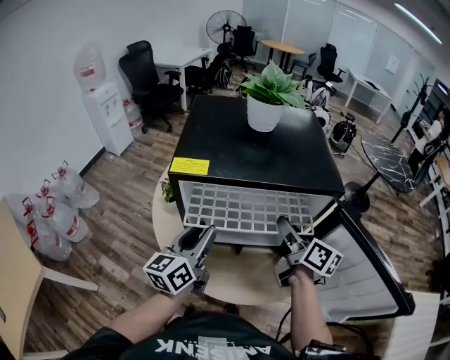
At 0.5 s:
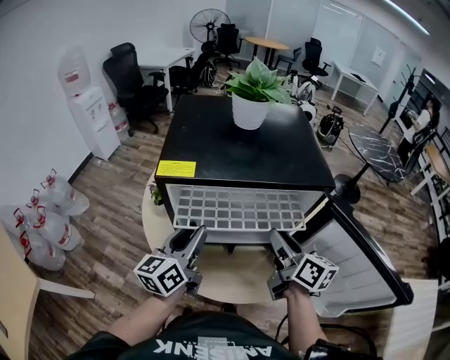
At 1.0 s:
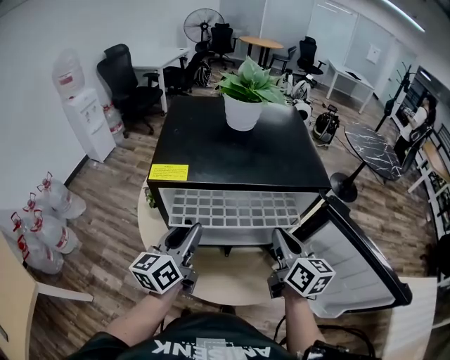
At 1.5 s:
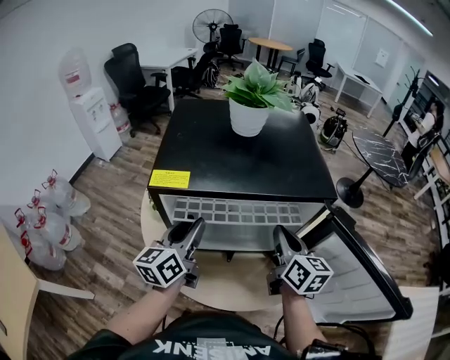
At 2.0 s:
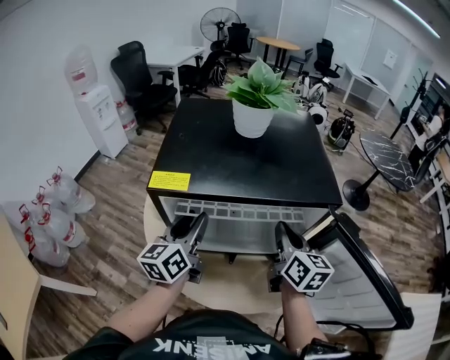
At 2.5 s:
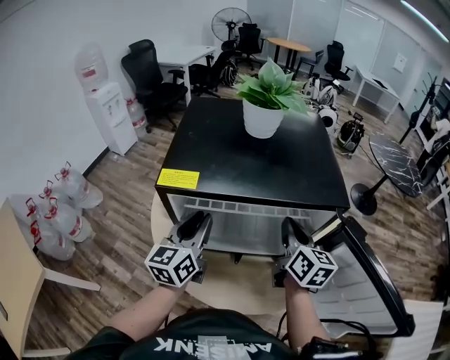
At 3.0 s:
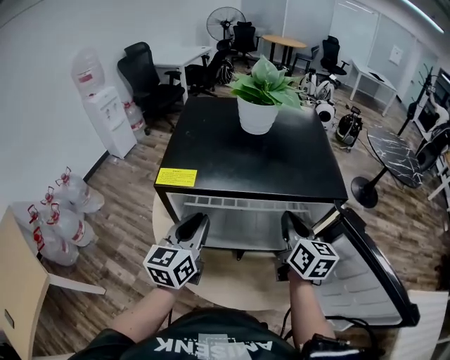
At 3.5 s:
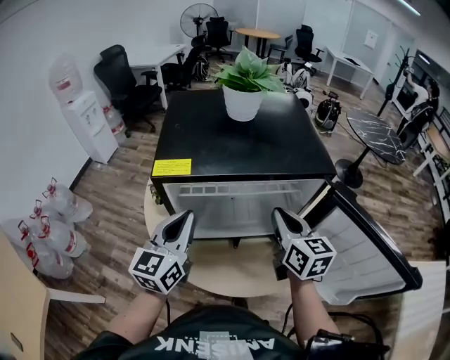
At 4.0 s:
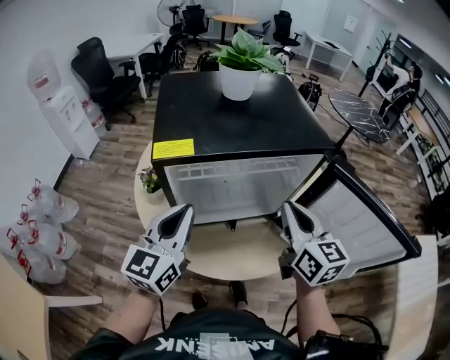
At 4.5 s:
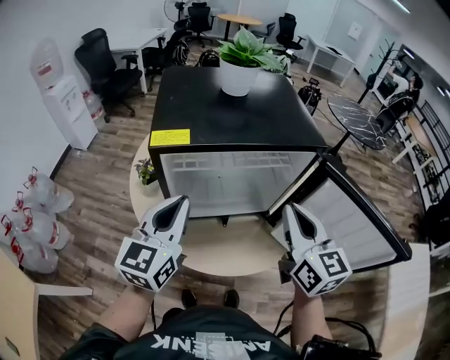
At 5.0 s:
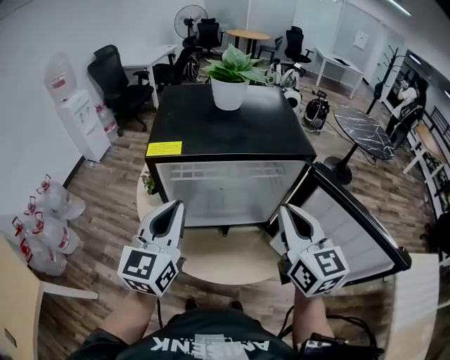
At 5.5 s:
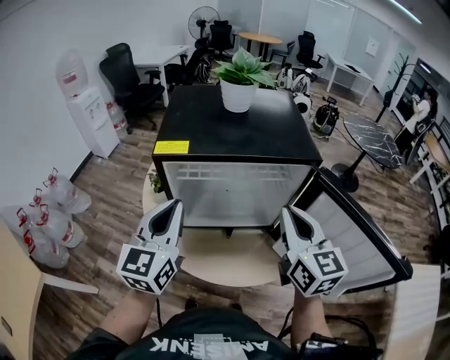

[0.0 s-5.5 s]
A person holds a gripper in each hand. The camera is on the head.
0.0 to 2.0 s: The right gripper closes up. Meanwhile the left gripper heads forward, covering about 5 cm.
2.0 to 3.5 s: The left gripper heads backward, covering about 5 cm, turns by roughly 20 degrees, and closes its fingers.
3.5 to 5.5 s: The grippers both shift backward and upward by some 10 cm.

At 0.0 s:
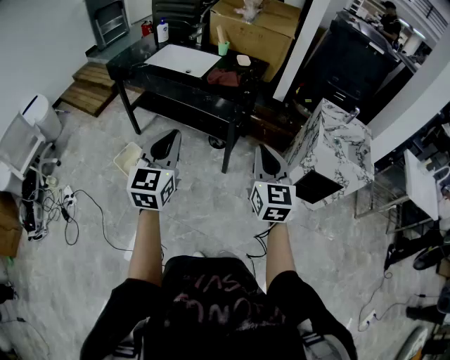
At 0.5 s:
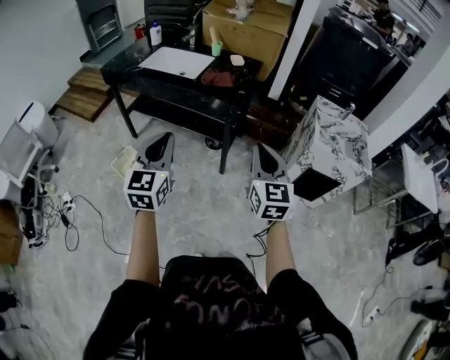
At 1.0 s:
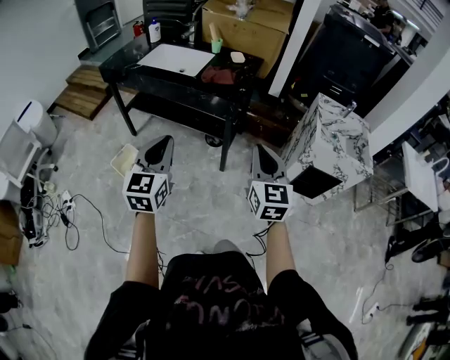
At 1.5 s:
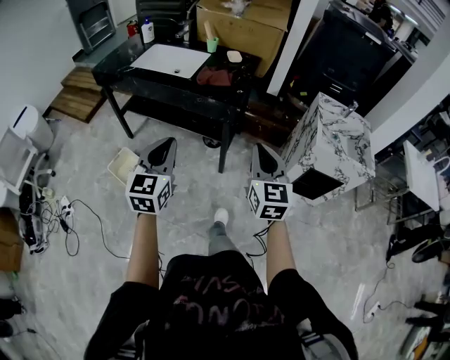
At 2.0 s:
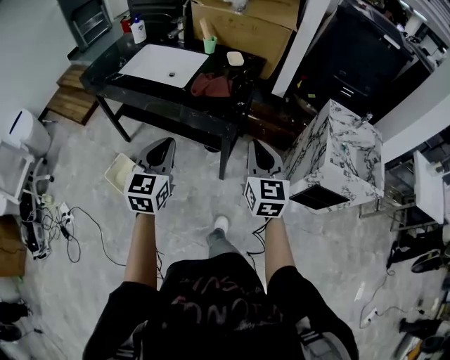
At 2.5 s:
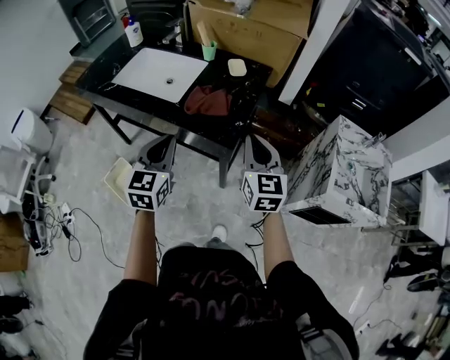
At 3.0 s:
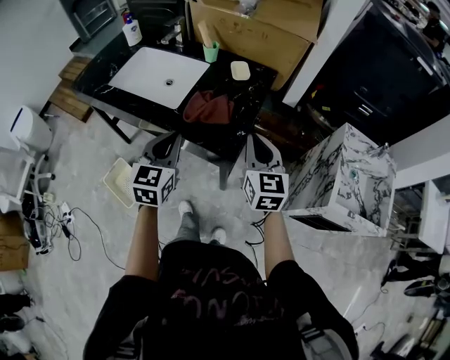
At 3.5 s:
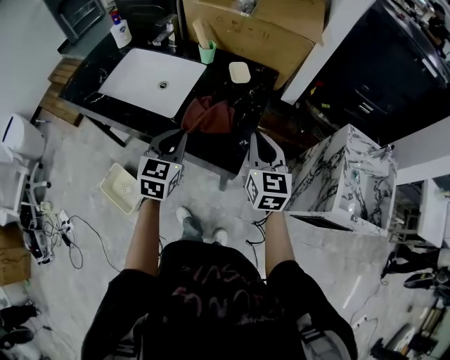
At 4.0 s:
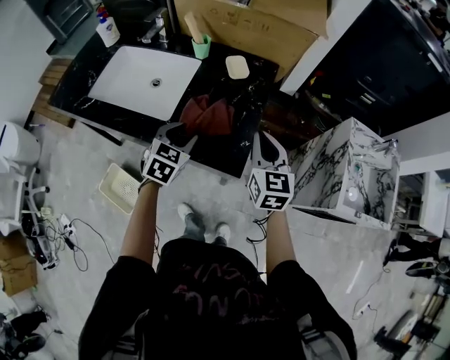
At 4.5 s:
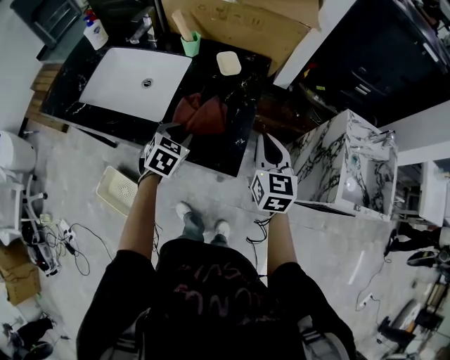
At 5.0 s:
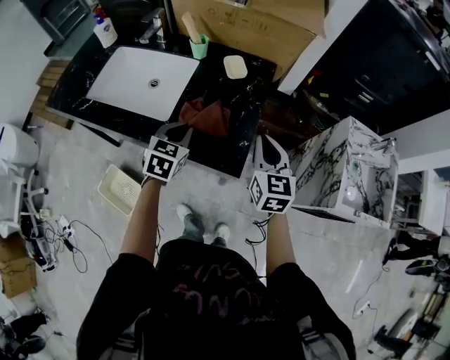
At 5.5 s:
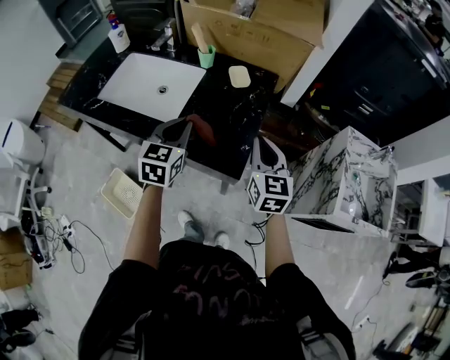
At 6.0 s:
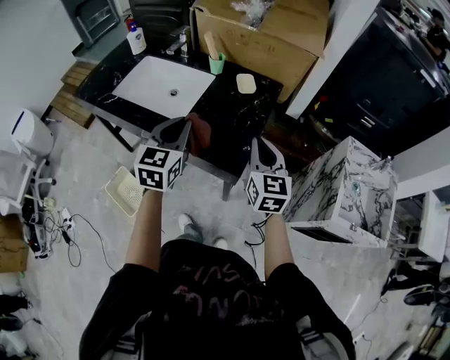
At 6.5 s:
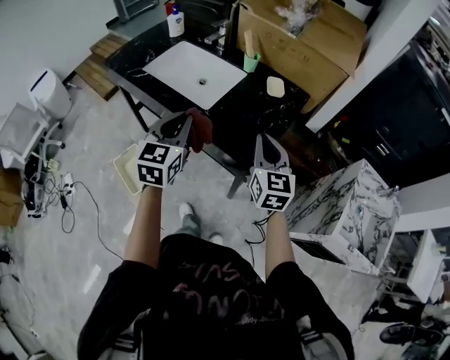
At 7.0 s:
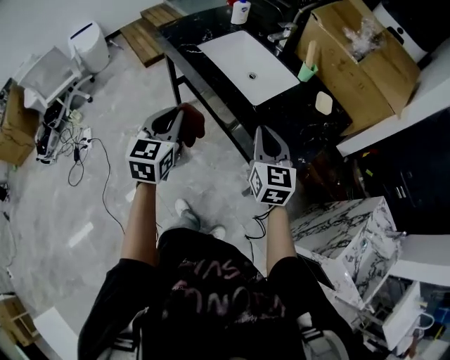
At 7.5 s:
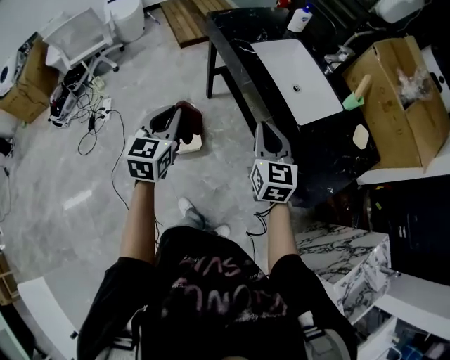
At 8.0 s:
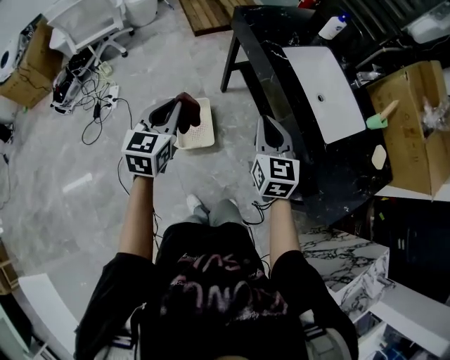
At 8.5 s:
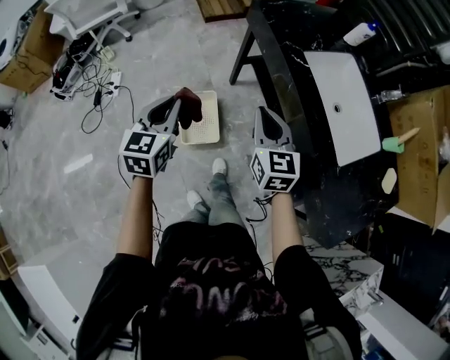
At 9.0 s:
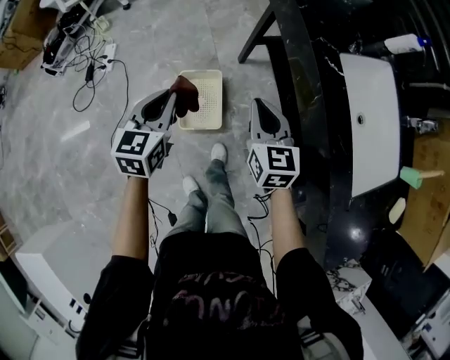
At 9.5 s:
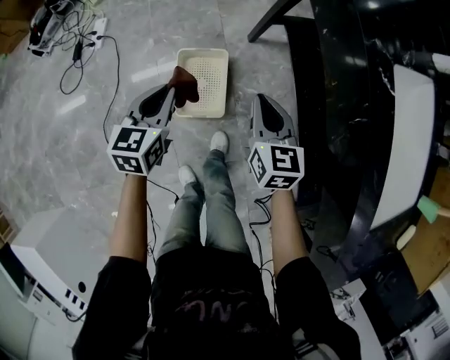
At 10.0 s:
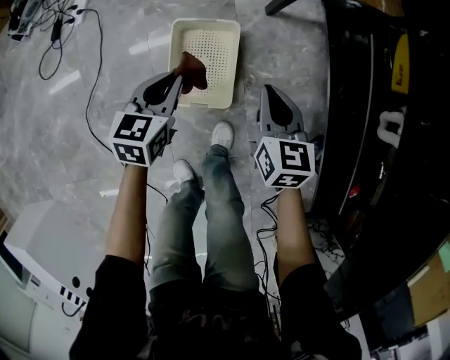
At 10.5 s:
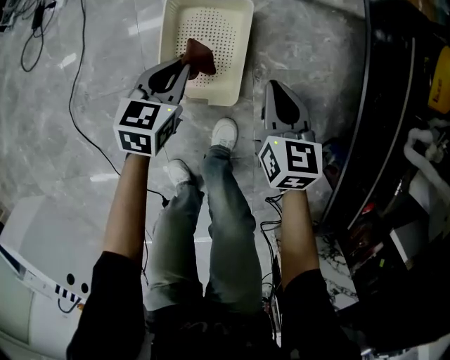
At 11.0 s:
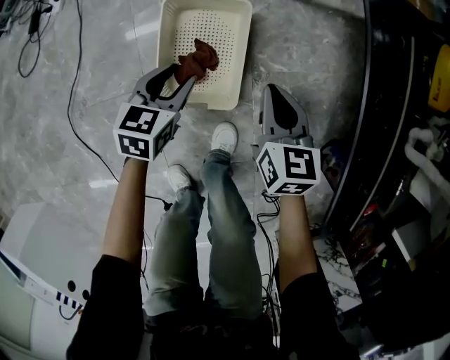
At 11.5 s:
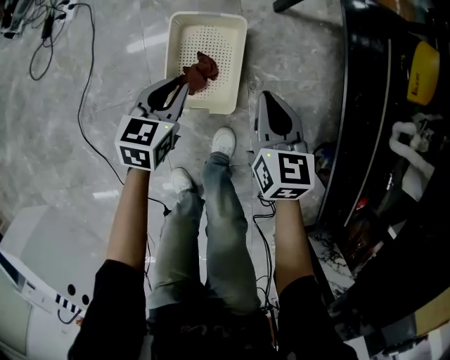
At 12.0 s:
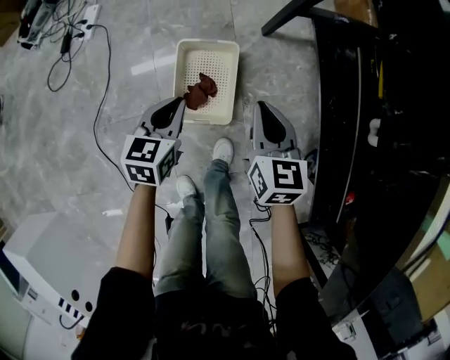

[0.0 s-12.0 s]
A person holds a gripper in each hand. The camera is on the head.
0.0 to 2.0 s: Both grippers travel together forward, approximately 20 cm.
2.0 to 4.0 s: Both grippers travel together forward, about 30 cm. The left gripper changes its angle by roughly 30 degrees, and opens.
4.0 to 6.0 s: The left gripper is displaced upward and backward by some 15 cm, changes its angle by approximately 30 degrees, and closes; the right gripper shifts by some 5 cm.
6.0 to 8.0 s: The two grippers travel together, some 50 cm. The right gripper rotates about 40 degrees, while the left gripper changes its angle by about 40 degrees.
8.0 to 10.0 s: The left gripper is displaced downward by some 50 cm, and turns by about 30 degrees, while the right gripper goes approximately 60 cm downward and forward, and turns by approximately 30 degrees.
10.0 to 12.0 s: The right gripper reaches some 15 cm downward, then returns. The left gripper goes downward and returns, roughly 15 cm each way, and opens and closes again.

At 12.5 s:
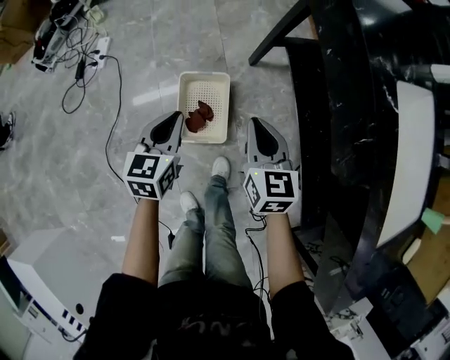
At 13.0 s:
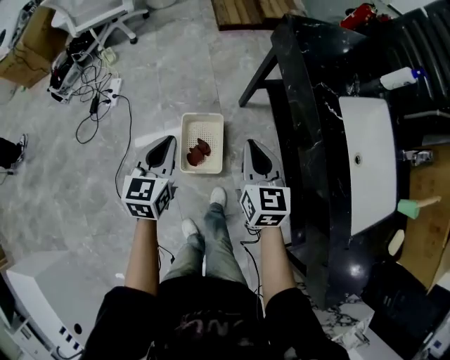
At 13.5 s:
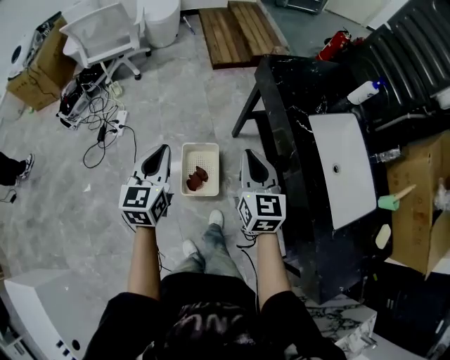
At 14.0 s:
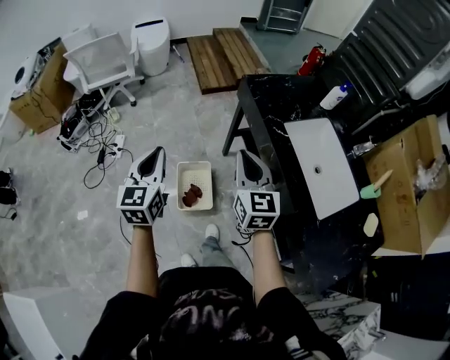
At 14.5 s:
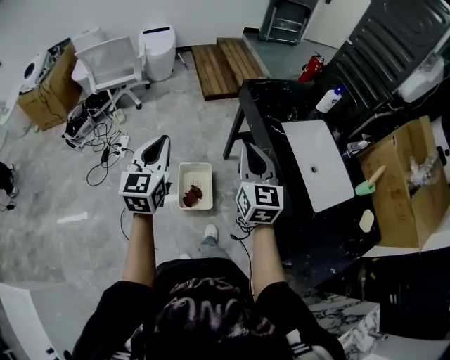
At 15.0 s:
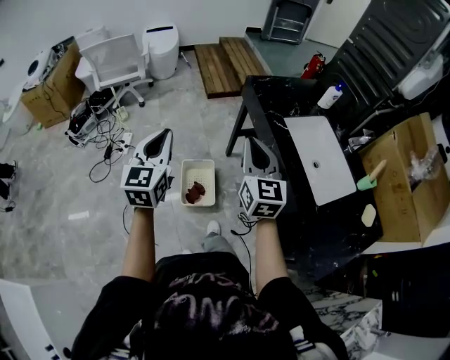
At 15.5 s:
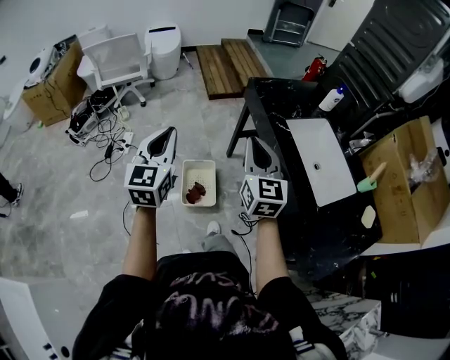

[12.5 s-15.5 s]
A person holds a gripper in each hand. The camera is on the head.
12.5 to 14.0 s: Both grippers move upward, about 40 cm. The right gripper rotates roughly 20 degrees; the left gripper swivels some 20 degrees.
14.0 to 15.5 s: The left gripper travels upward and backward by roughly 10 cm. The right gripper moves backward and upward, roughly 10 cm.

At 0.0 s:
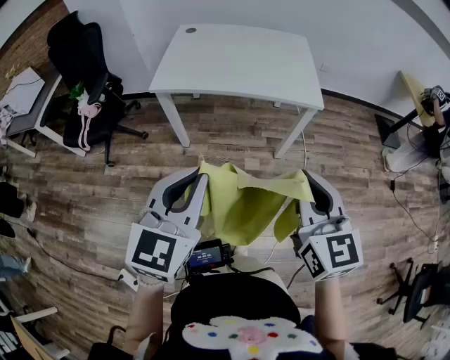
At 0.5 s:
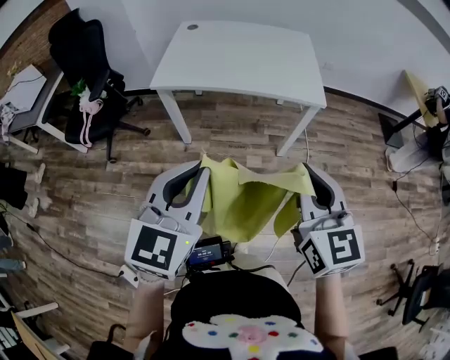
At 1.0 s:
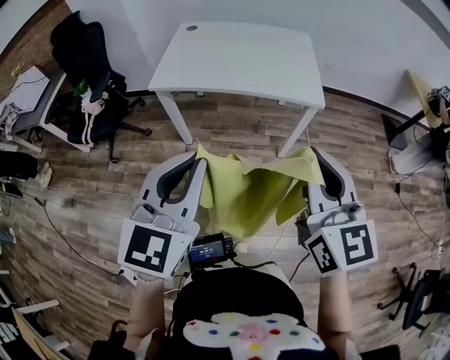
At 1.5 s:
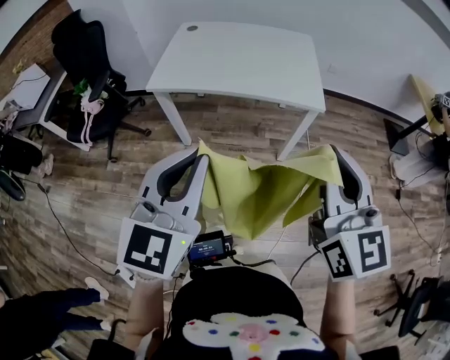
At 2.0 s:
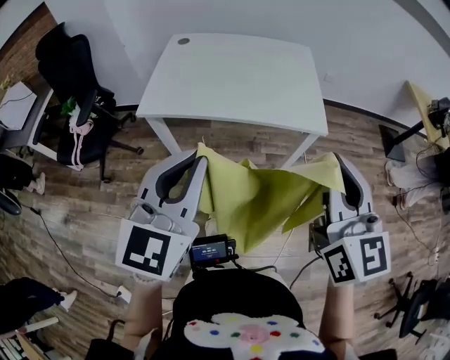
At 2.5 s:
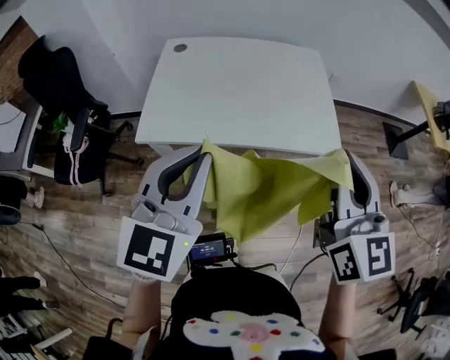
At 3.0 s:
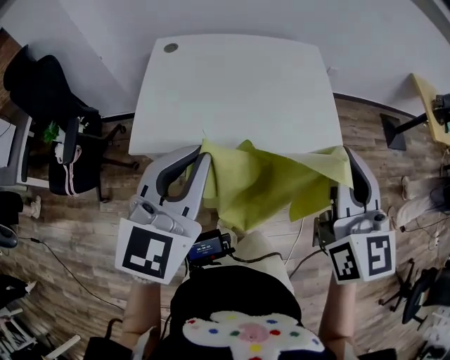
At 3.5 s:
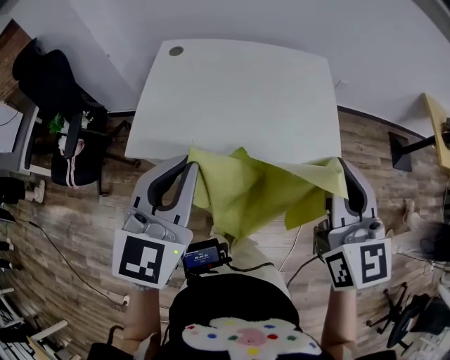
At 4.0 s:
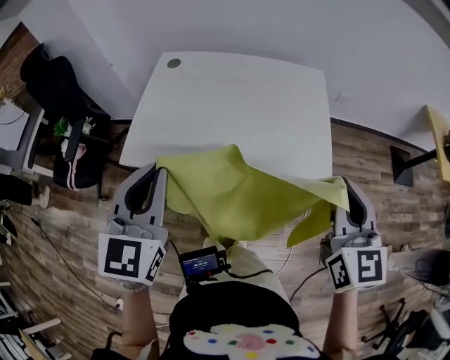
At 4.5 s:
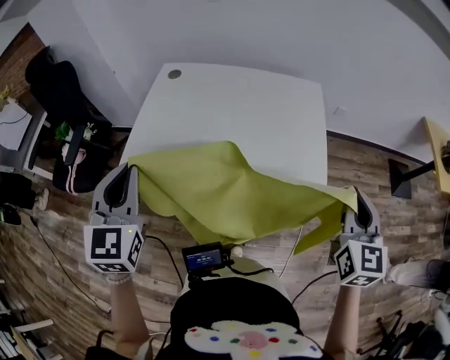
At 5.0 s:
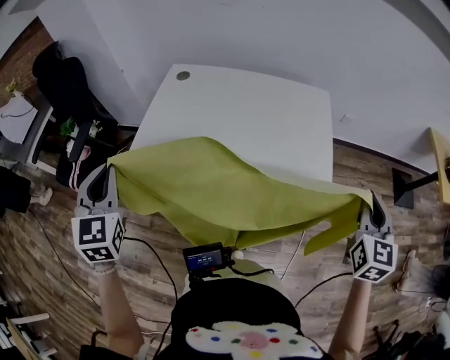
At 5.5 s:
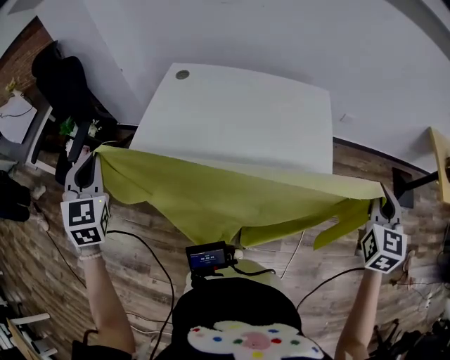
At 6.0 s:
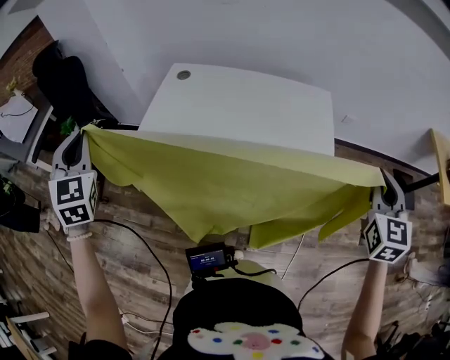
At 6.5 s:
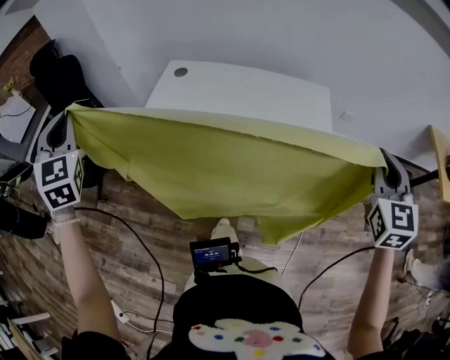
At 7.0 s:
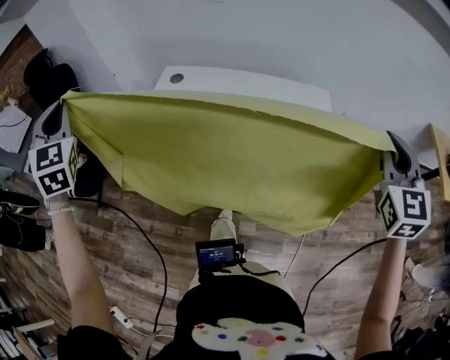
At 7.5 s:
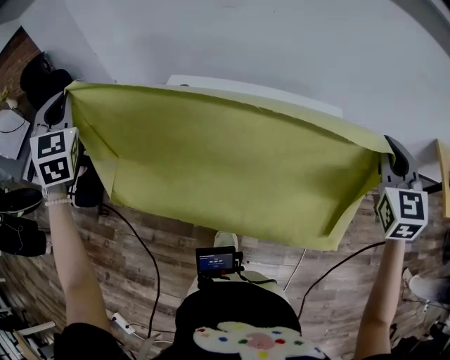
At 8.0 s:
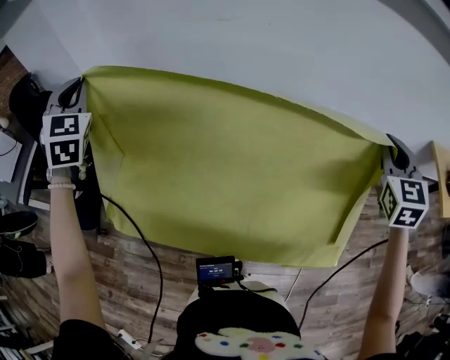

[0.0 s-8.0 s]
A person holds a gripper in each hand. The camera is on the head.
0.0 to 2.0 s: The right gripper moves forward and upward, approximately 15 cm. Meanwhile the left gripper heads forward, covering roughly 15 cm.
2.0 to 4.0 s: The two grippers go some 20 cm forward.
4.0 to 6.0 s: The right gripper heads to the right and forward, covering roughly 15 cm. The left gripper is displaced to the left and forward by about 25 cm, and changes its angle by approximately 40 degrees.
6.0 to 8.0 s: Both grippers travel together forward, roughly 25 cm.
